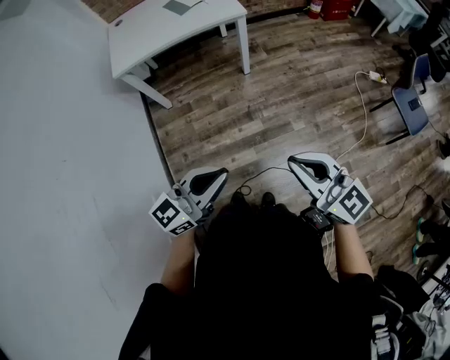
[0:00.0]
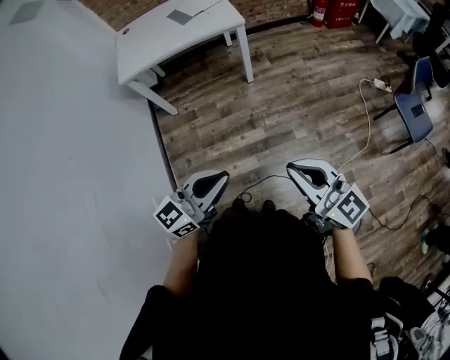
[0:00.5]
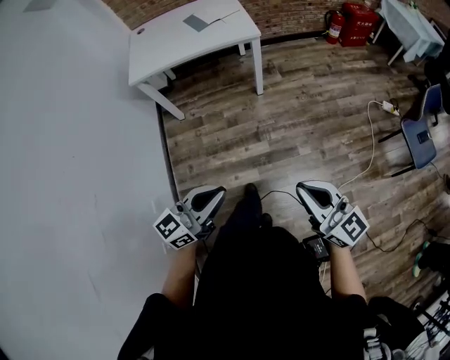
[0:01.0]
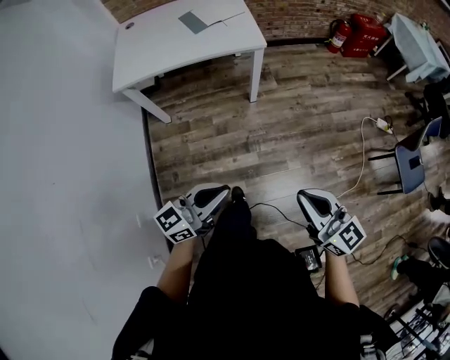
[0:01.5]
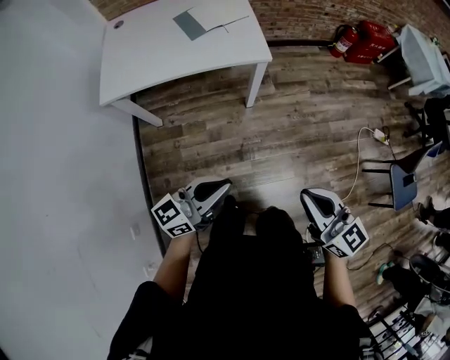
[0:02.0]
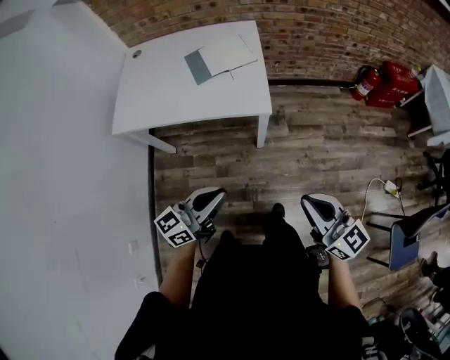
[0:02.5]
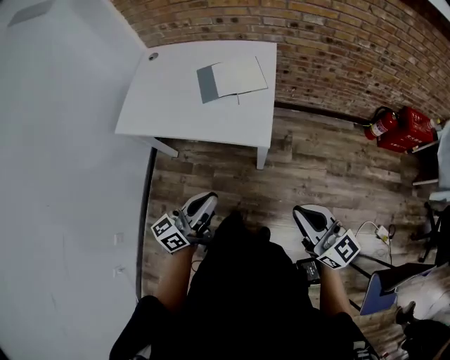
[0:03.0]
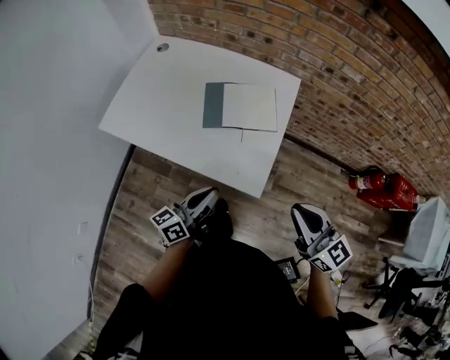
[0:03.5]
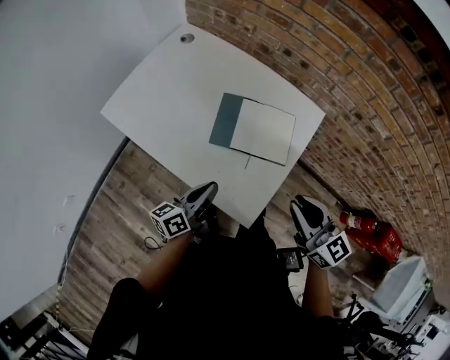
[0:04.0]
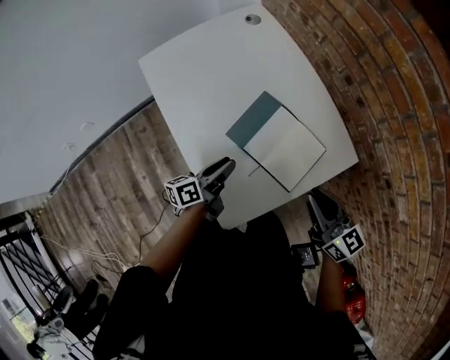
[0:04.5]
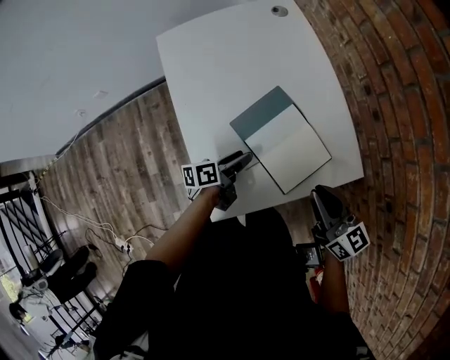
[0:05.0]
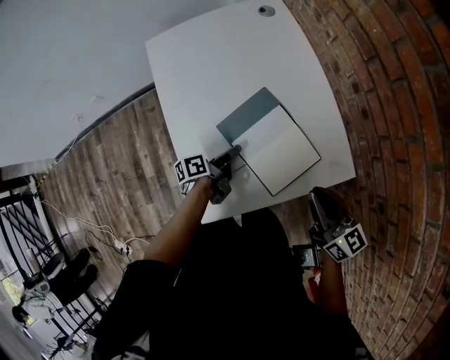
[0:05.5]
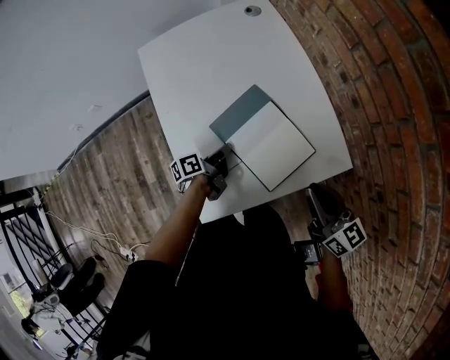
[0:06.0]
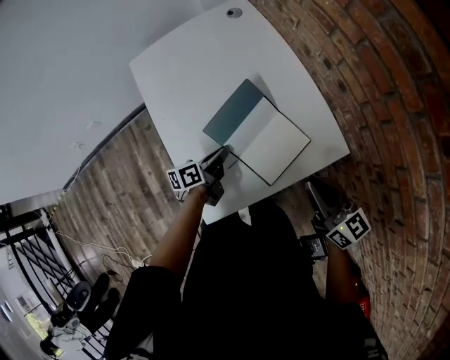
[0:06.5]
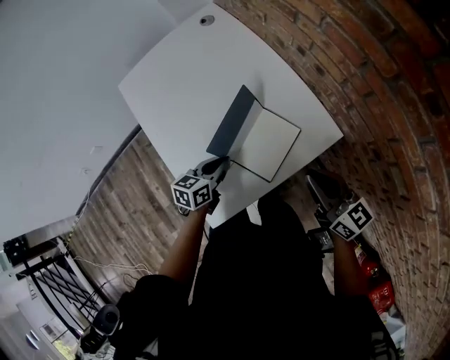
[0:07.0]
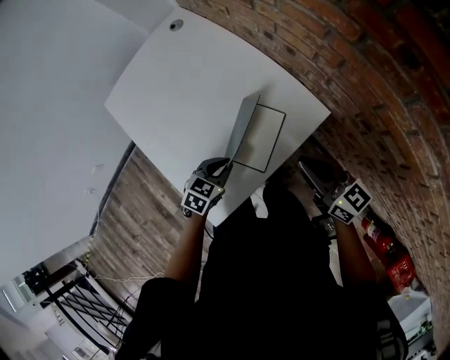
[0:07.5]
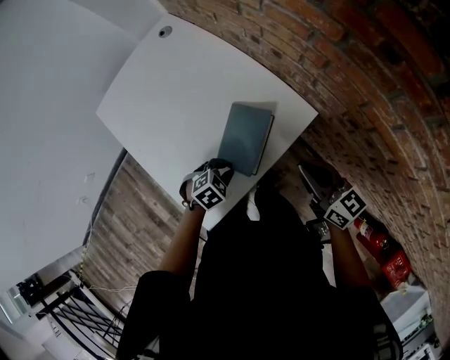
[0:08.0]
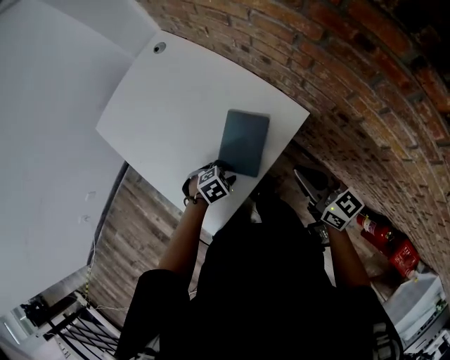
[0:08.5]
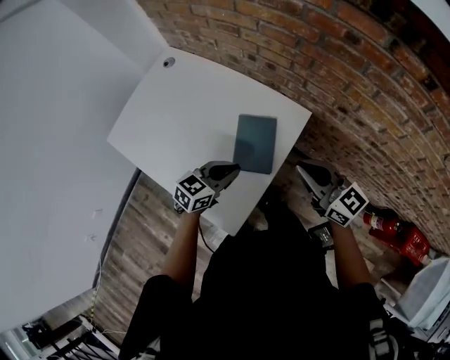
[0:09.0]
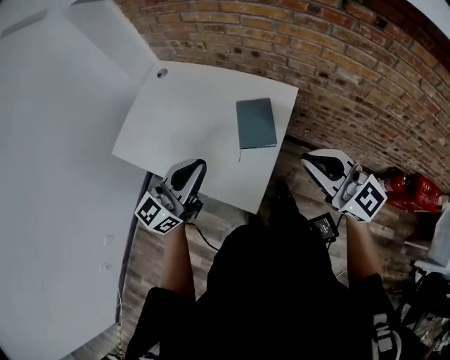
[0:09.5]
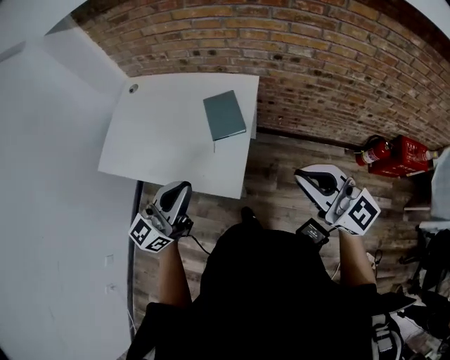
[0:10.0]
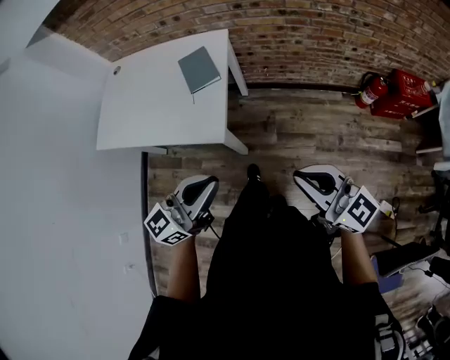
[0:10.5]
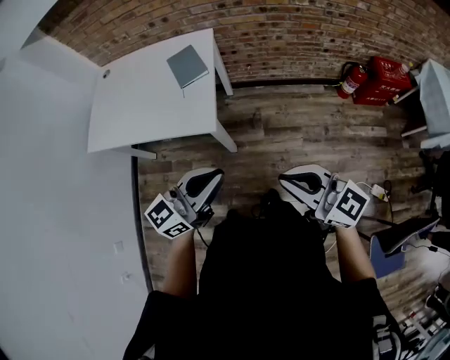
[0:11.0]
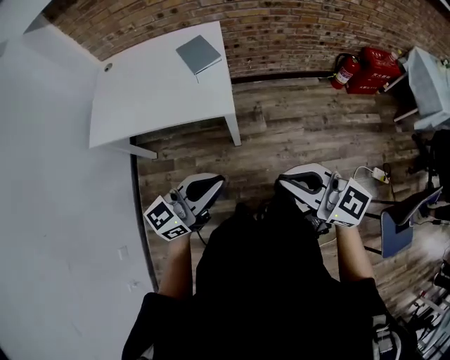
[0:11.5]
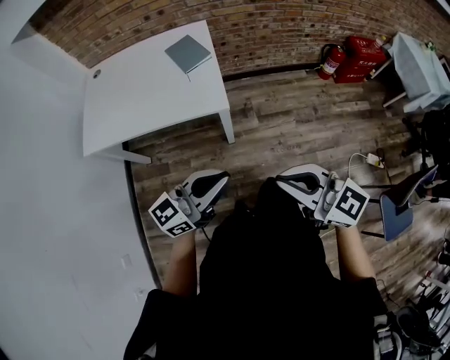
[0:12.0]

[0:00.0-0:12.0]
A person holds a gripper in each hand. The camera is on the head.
0:00.0 to 0:02.0: Both grippers move forward, about 30 cm.
0:02.0 to 0:04.0: Both grippers are carried about 60 cm. The right gripper turns by roughly 40 degrees, while the left gripper swivels roughly 70 degrees.
0:04.0 to 0:06.0: The left gripper is displaced downward by about 15 cm, rotates roughly 50 degrees, and opens, then closes once more. The right gripper shifts by some 25 cm, and turns by approximately 40 degrees.
0:06.0 to 0:08.0: The right gripper shifts by approximately 10 cm, while the left gripper ends up roughly 15 cm from where it was, and rolls clockwise, seen from behind, by some 100 degrees.
0:08.0 to 0:10.0: The left gripper is displaced upward by roughly 35 cm, and angles its fingers upward, by some 80 degrees. Meanwhile the right gripper shifts by approximately 40 cm, and rotates approximately 40 degrees.
0:10.0 to 0:12.0: Both grippers travel together backward, some 35 cm. The left gripper rotates roughly 40 degrees.

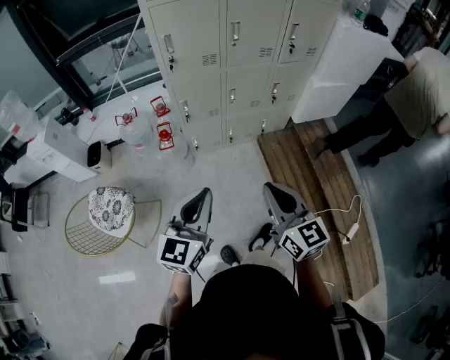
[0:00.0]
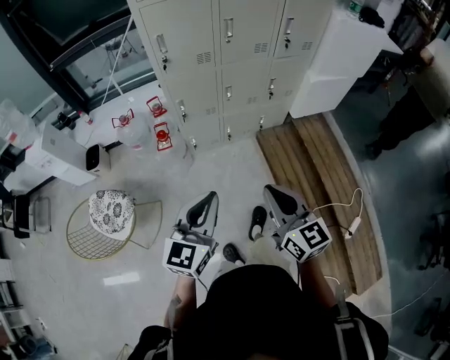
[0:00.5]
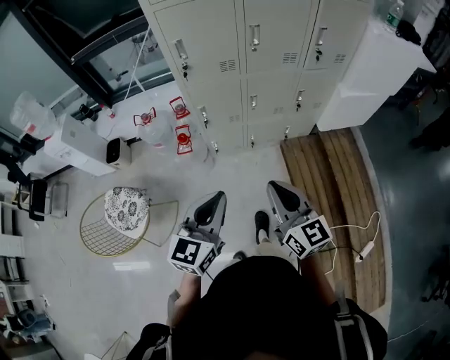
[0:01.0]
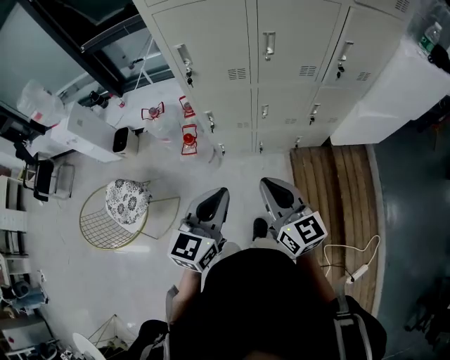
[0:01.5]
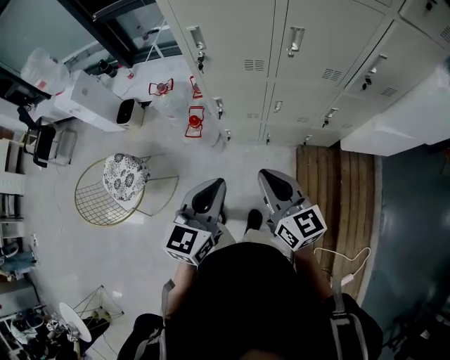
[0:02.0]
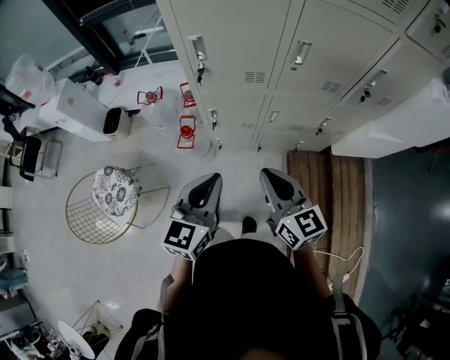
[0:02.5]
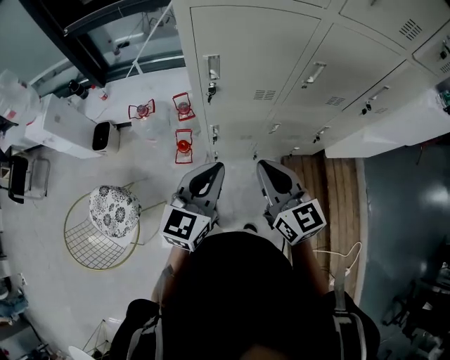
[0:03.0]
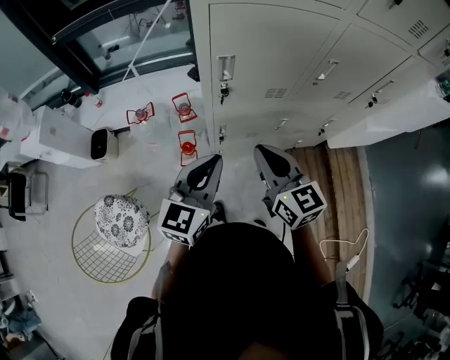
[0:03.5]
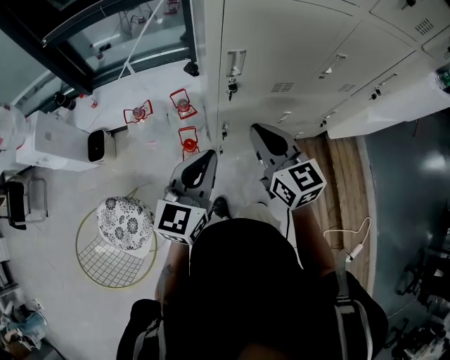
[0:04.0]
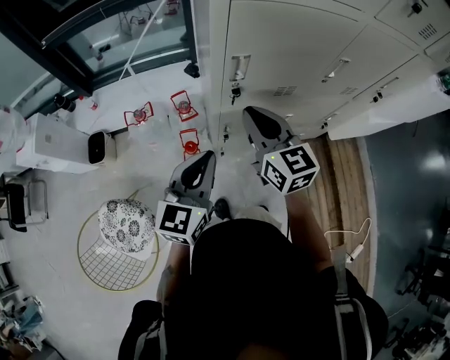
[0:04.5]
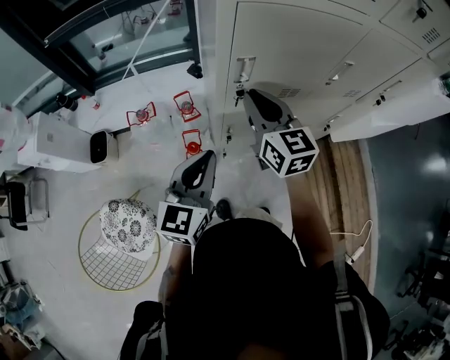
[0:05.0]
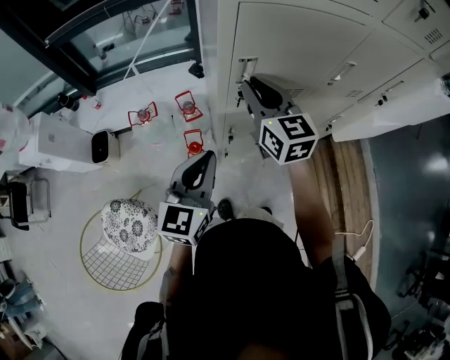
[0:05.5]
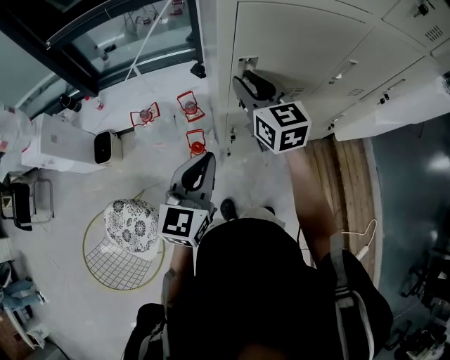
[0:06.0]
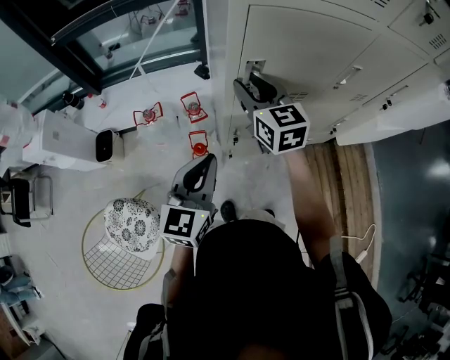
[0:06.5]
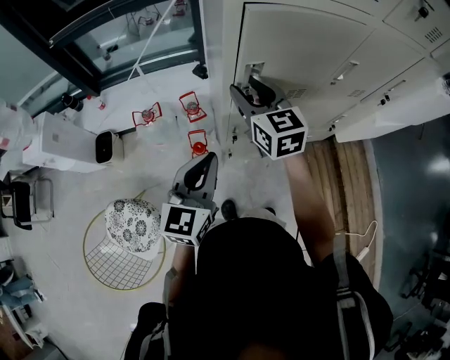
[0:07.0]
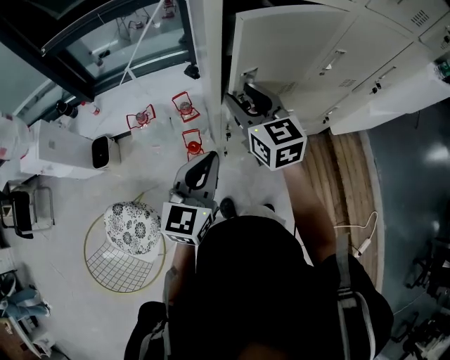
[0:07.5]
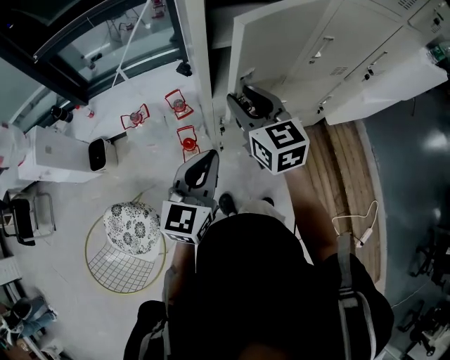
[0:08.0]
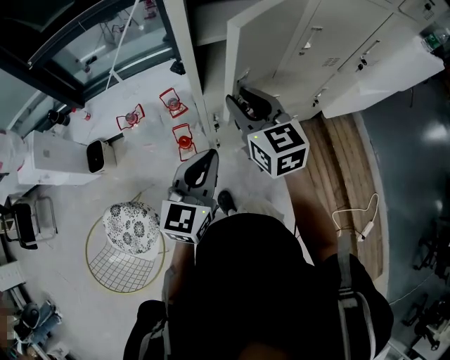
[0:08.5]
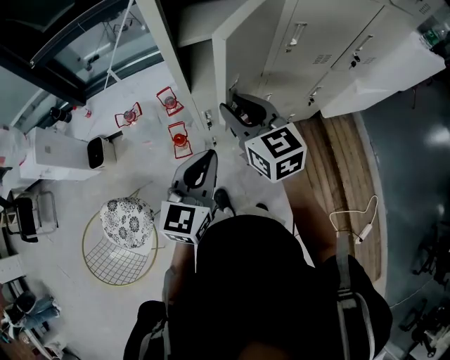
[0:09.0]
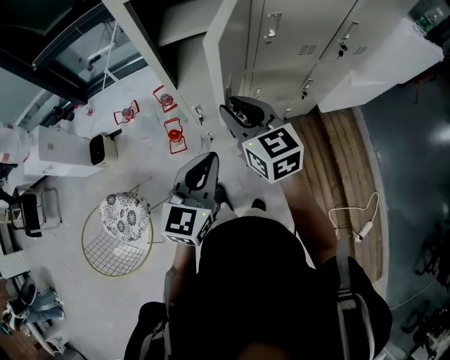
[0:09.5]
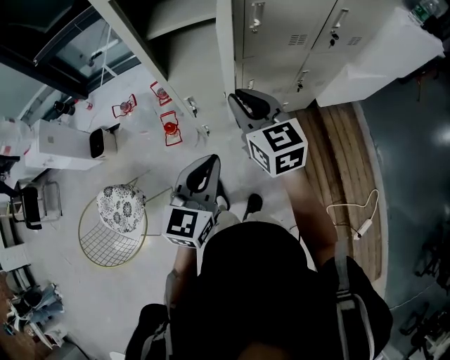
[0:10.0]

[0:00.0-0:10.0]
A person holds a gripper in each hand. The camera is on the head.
0:00.0 to 0:02.0: Both grippers move forward, some 25 cm. The left gripper changes its angle by about 20 degrees, while the right gripper turns by roughly 20 degrees.
0:02.0 to 0:04.0: The grippers both shift forward and to the left by about 30 cm.
0:04.0 to 0:06.0: The right gripper is displaced forward by about 15 cm, and opens up.
0:06.0 to 0:08.0: The left gripper ends up roughly 5 cm from where it was. The right gripper is displaced backward by about 10 cm.
0:08.0 to 0:10.0: The two grippers go some 20 cm to the right and backward.

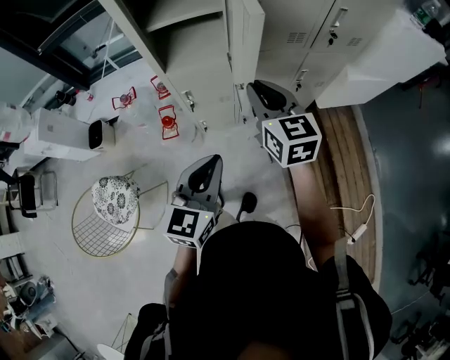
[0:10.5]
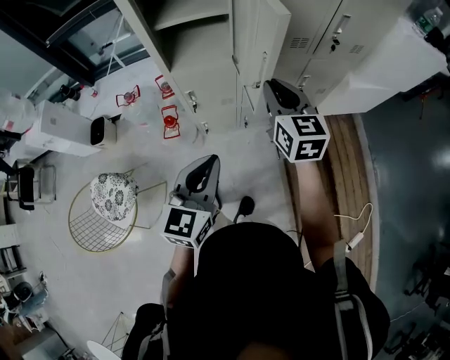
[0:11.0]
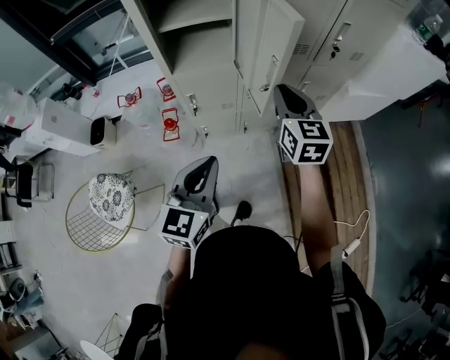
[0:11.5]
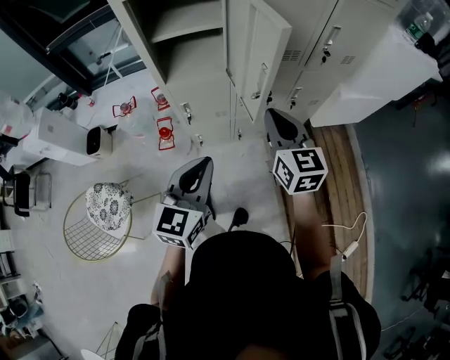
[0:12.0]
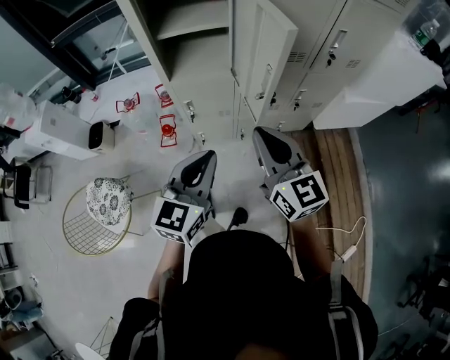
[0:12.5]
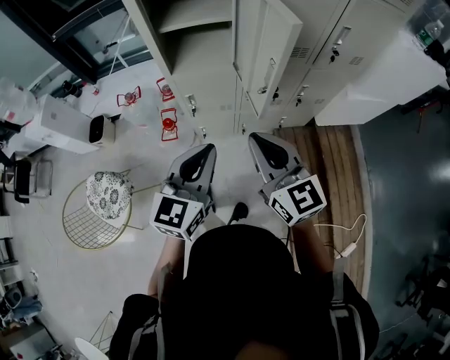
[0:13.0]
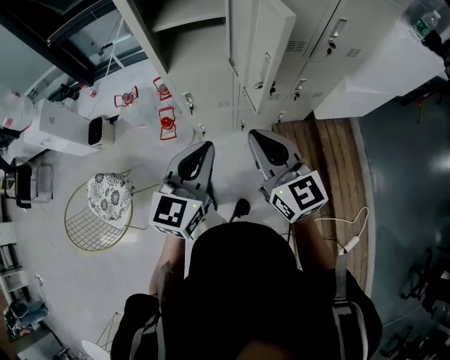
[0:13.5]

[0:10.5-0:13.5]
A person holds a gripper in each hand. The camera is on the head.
0:10.5 to 0:12.0: The right gripper travels to the right by some 5 cm.
0:12.0 to 0:13.5: The right gripper goes about 10 cm backward and to the left.

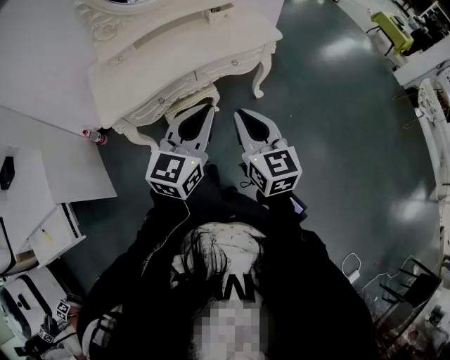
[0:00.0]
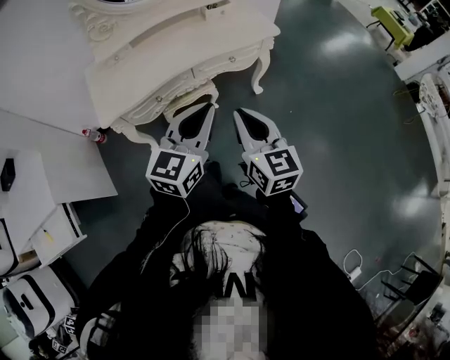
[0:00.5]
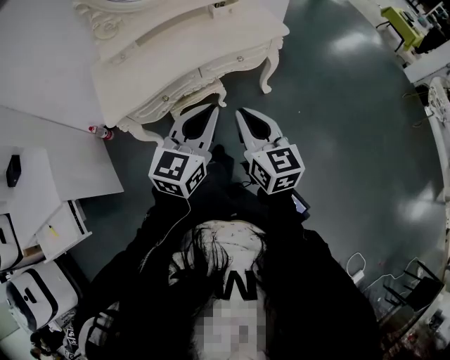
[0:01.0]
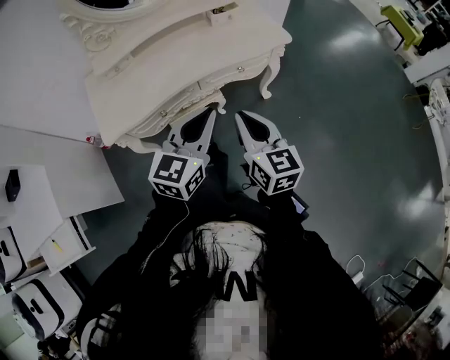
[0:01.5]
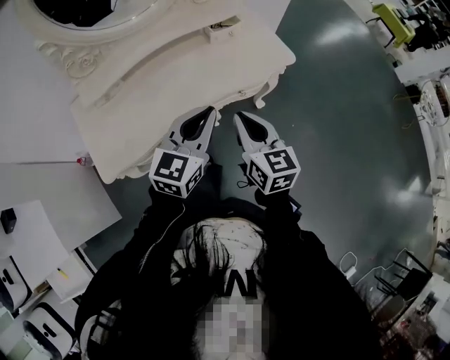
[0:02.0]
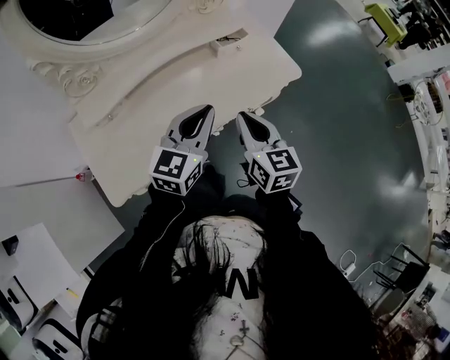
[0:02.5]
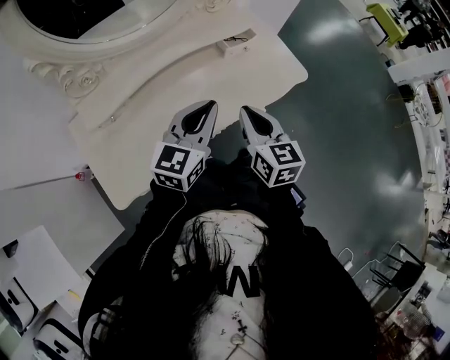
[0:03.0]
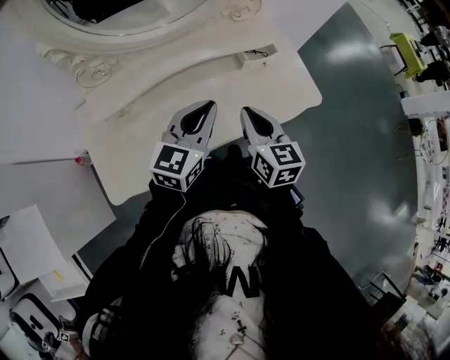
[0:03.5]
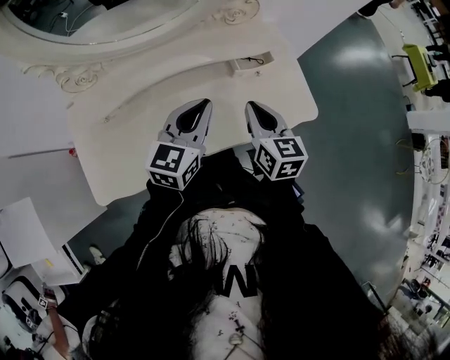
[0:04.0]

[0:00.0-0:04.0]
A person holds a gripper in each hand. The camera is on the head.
0:00.0 to 0:02.0: Both grippers travel together forward, about 25 cm.
0:02.0 to 0:04.0: The grippers both shift forward by roughly 25 cm.
